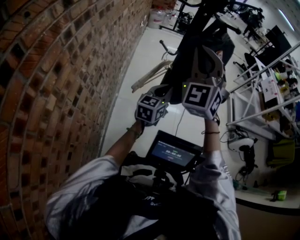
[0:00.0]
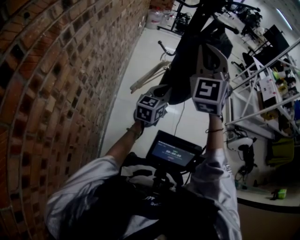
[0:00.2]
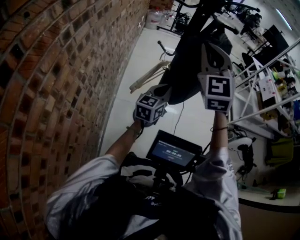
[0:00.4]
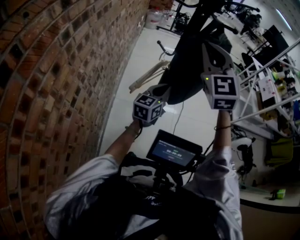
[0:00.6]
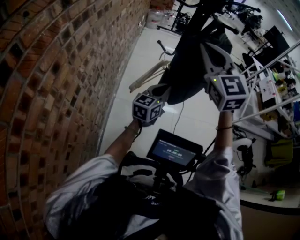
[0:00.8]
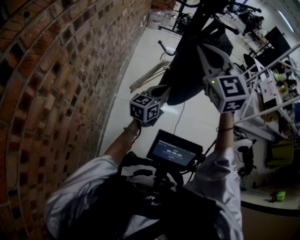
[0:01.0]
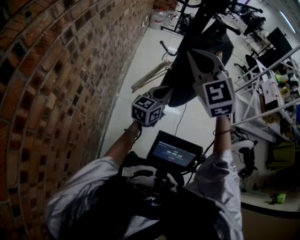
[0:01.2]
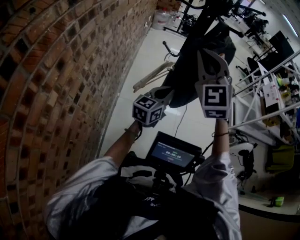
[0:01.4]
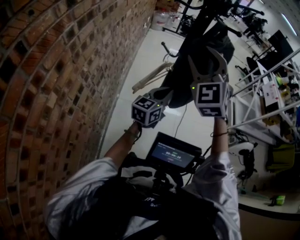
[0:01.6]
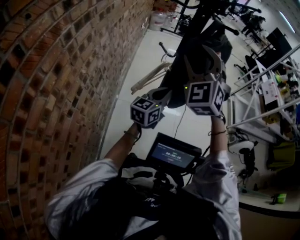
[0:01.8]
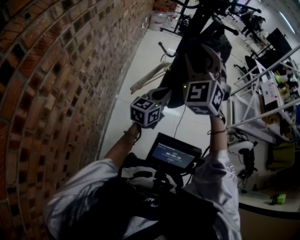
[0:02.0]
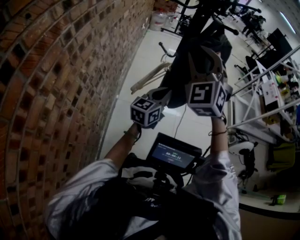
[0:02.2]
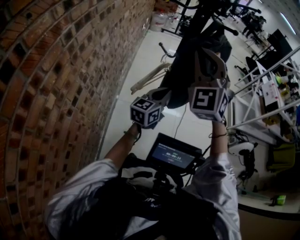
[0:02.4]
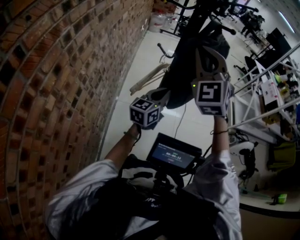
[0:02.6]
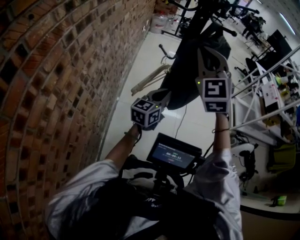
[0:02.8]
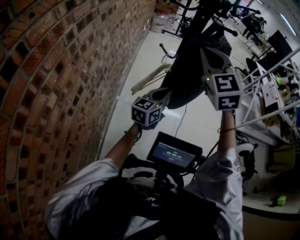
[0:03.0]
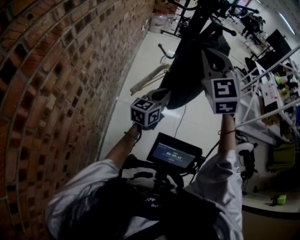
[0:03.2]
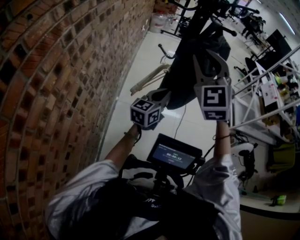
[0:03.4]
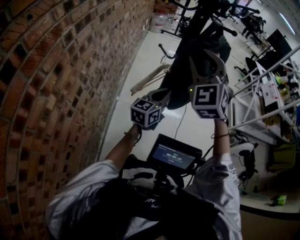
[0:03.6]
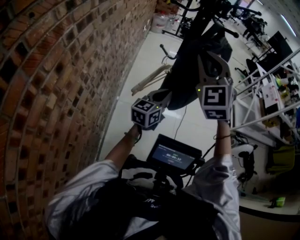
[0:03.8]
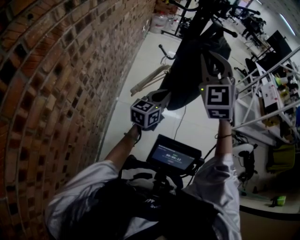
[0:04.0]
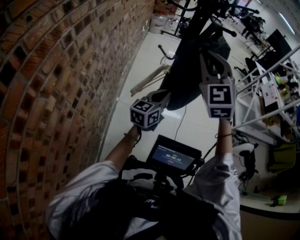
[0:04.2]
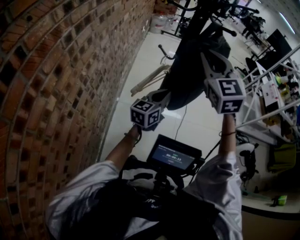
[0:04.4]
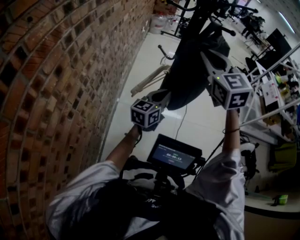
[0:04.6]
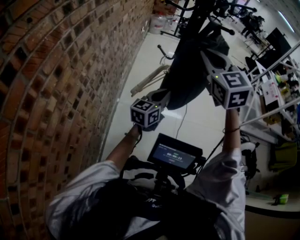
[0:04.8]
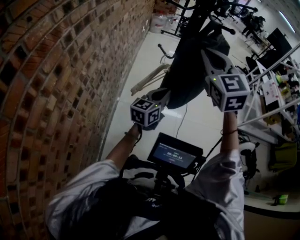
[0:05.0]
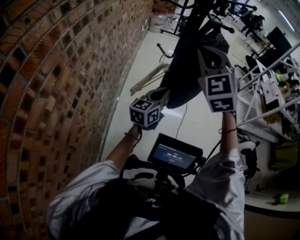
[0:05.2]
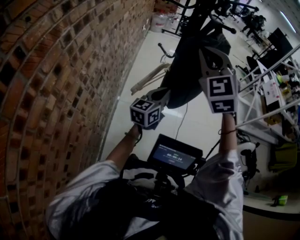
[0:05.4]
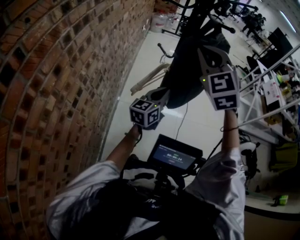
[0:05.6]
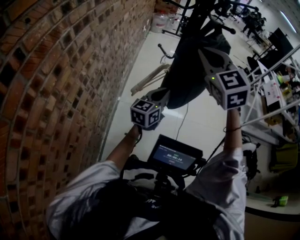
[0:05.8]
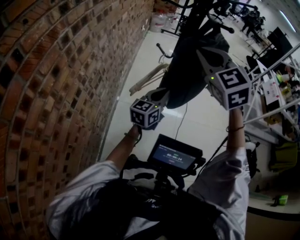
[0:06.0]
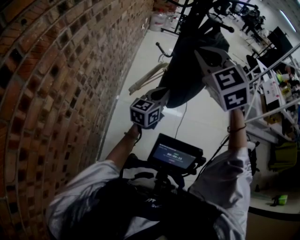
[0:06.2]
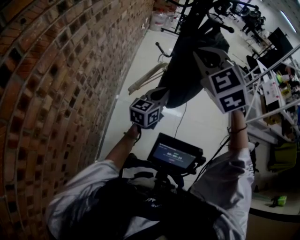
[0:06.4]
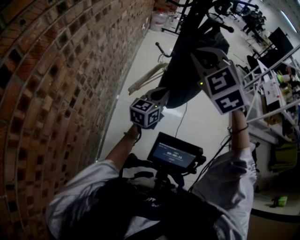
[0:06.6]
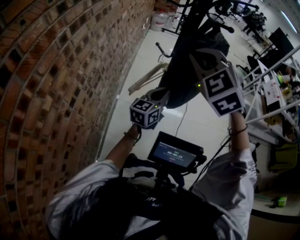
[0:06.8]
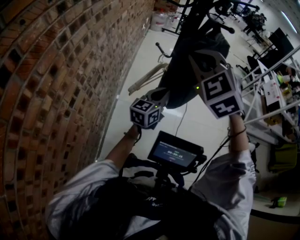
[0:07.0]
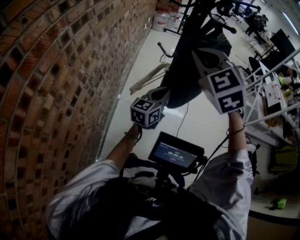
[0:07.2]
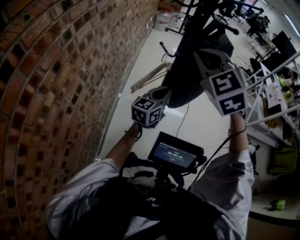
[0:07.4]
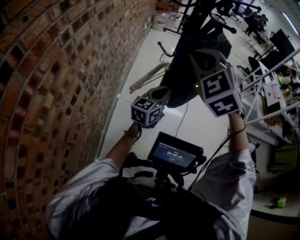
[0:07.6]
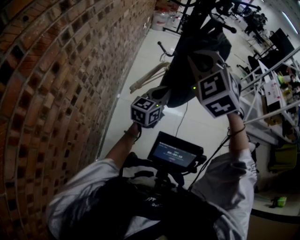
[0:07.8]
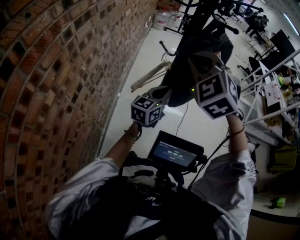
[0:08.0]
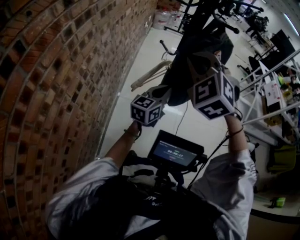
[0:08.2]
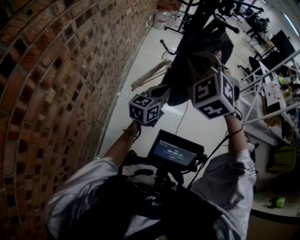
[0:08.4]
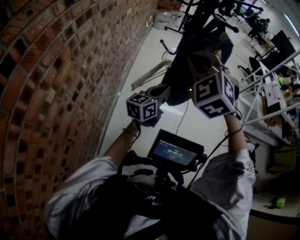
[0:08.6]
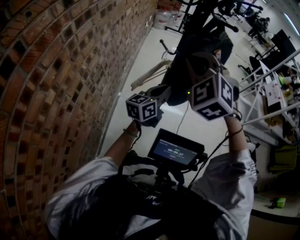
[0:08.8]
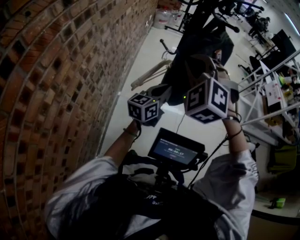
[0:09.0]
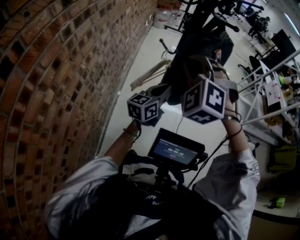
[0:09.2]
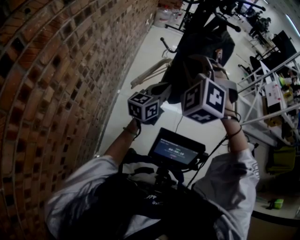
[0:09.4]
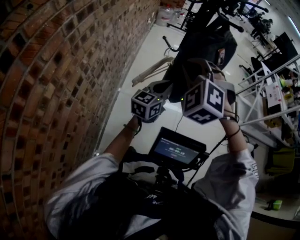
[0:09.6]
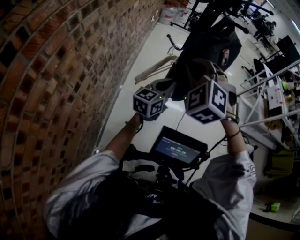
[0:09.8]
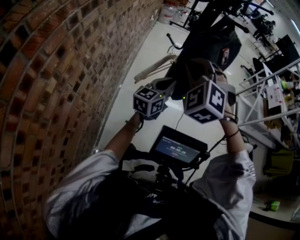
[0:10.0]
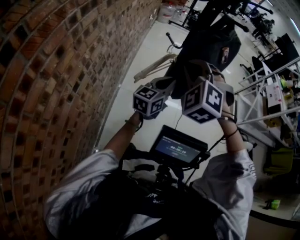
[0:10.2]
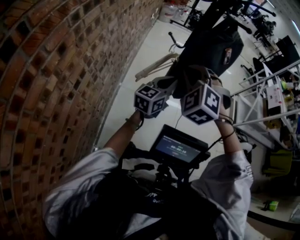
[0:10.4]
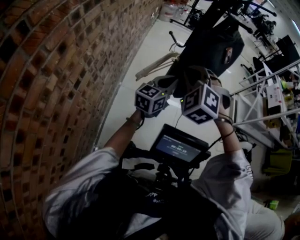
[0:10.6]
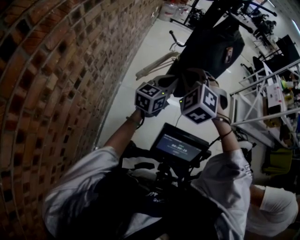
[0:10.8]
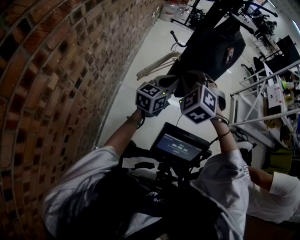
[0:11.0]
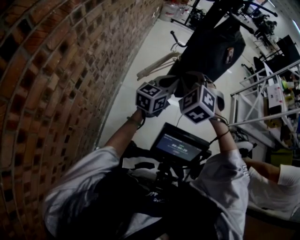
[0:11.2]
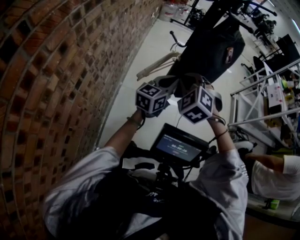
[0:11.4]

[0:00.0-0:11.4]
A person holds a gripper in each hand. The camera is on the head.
0:01.4 to 0:02.8: The right gripper opens, then closes once more.
0:02.8 to 0:04.2: The right gripper opens, then closes once more.
0:05.6 to 0:07.2: The grippers move only a little.
0:07.2 to 0:08.6: The grippers make only small movements.
0:08.6 to 0:10.0: The right gripper travels downward by roughly 5 cm.
0:10.0 to 0:11.4: The right gripper moves downward, some 10 cm.

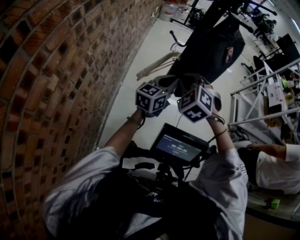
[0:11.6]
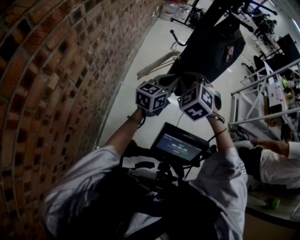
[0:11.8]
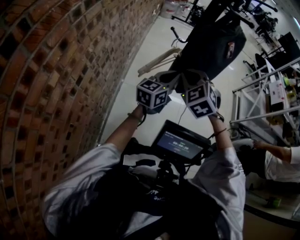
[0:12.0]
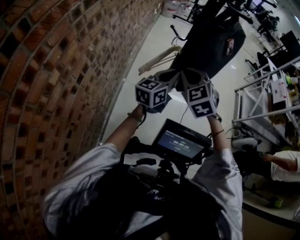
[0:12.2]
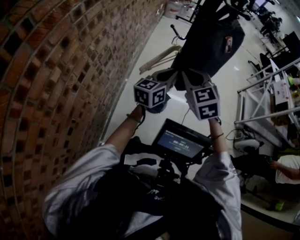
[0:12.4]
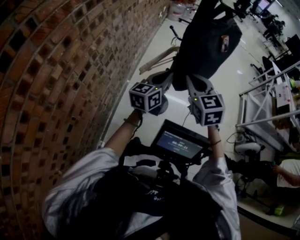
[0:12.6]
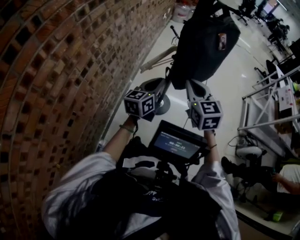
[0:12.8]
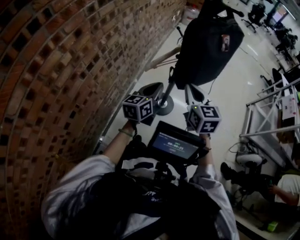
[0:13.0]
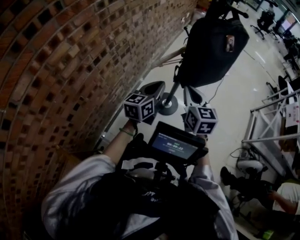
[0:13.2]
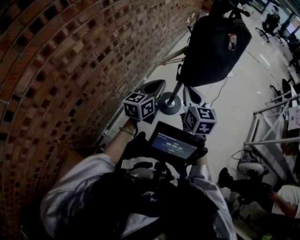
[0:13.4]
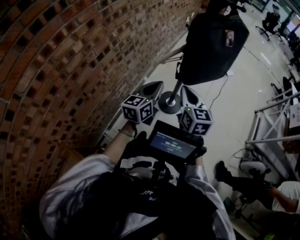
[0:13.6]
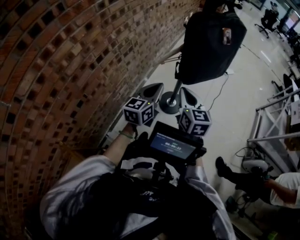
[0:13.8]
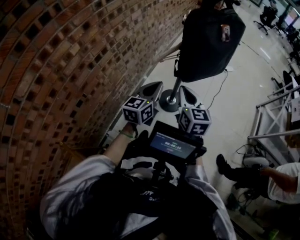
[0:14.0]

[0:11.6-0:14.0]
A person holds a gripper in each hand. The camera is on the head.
0:11.6 to 0:12.8: The left gripper moves backward, some 5 cm. The right gripper is displaced to the right by roughly 5 cm, and rotates around the line of its fingers by roughly 40 degrees, clockwise from behind.
0:12.8 to 0:14.0: The left gripper moves backward, roughly 10 cm. The right gripper moves downward and backward, about 10 cm.

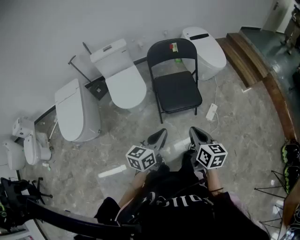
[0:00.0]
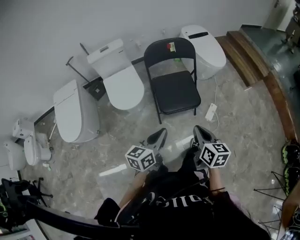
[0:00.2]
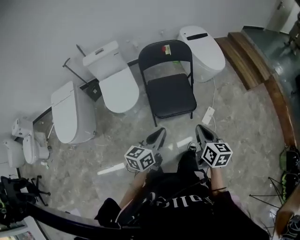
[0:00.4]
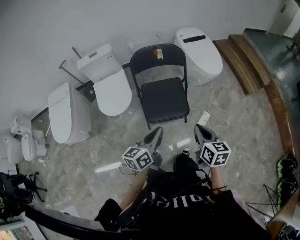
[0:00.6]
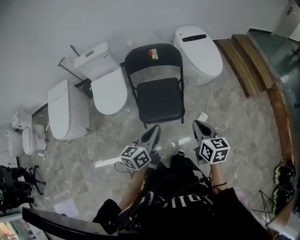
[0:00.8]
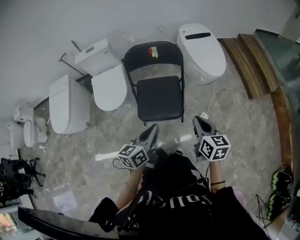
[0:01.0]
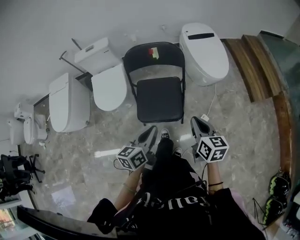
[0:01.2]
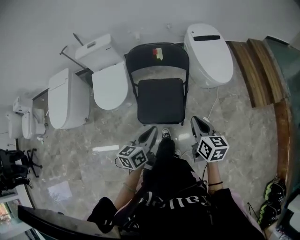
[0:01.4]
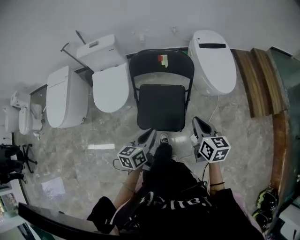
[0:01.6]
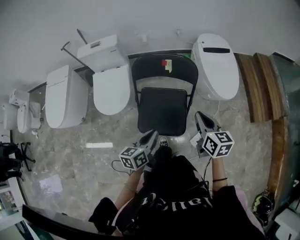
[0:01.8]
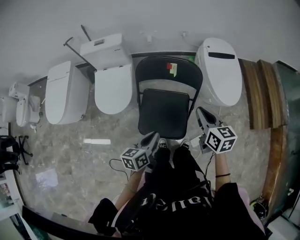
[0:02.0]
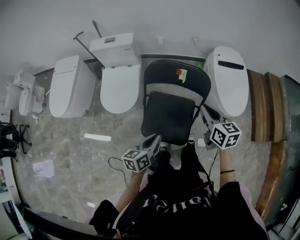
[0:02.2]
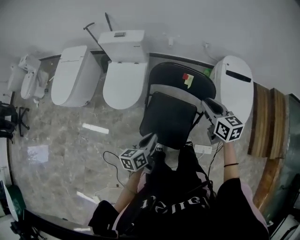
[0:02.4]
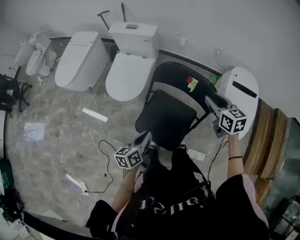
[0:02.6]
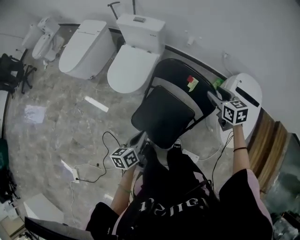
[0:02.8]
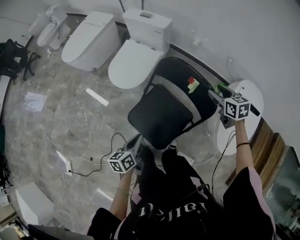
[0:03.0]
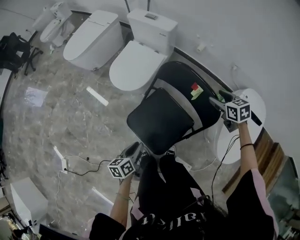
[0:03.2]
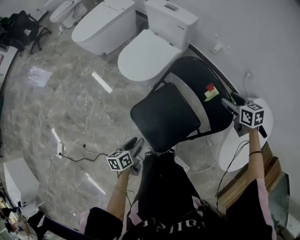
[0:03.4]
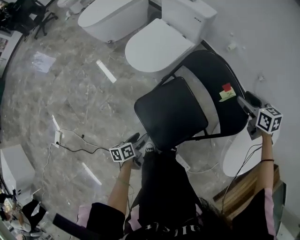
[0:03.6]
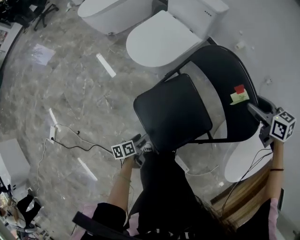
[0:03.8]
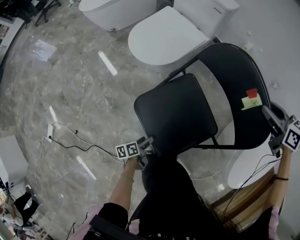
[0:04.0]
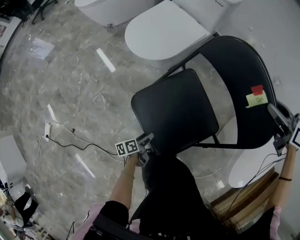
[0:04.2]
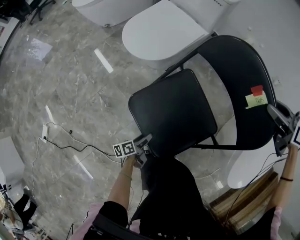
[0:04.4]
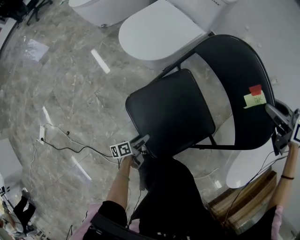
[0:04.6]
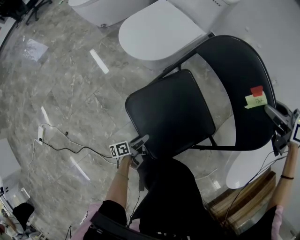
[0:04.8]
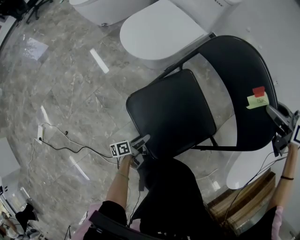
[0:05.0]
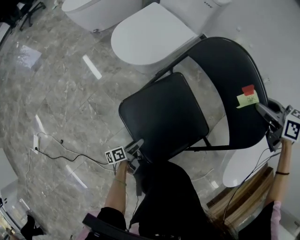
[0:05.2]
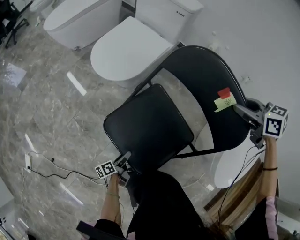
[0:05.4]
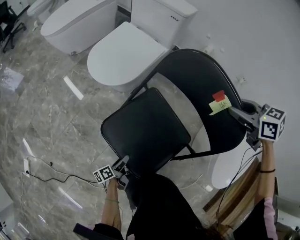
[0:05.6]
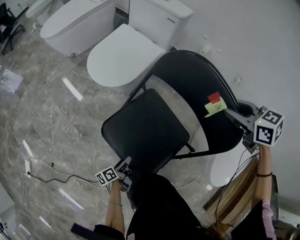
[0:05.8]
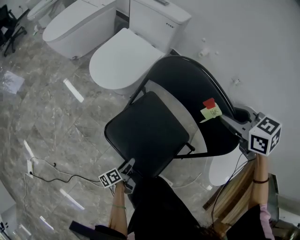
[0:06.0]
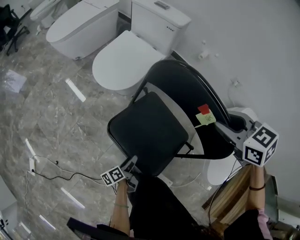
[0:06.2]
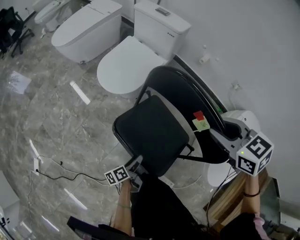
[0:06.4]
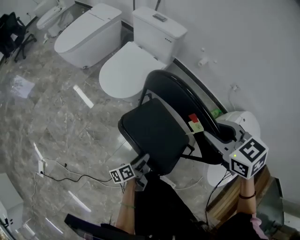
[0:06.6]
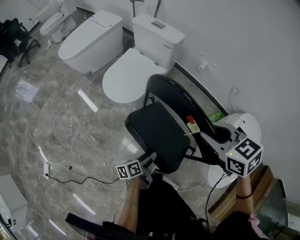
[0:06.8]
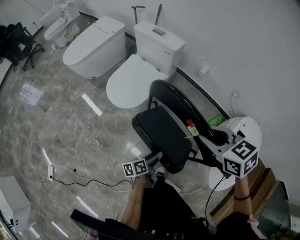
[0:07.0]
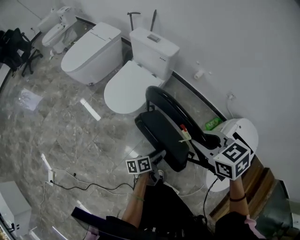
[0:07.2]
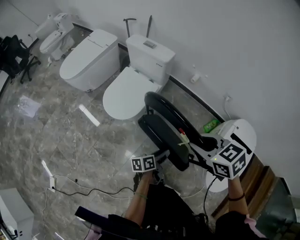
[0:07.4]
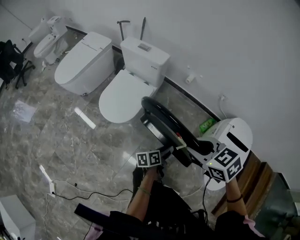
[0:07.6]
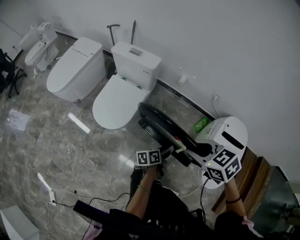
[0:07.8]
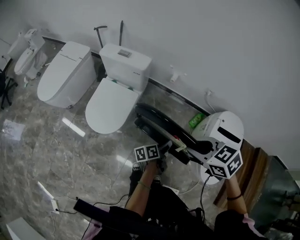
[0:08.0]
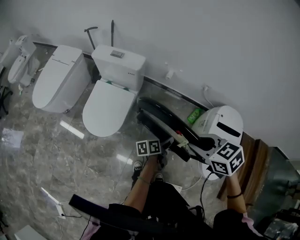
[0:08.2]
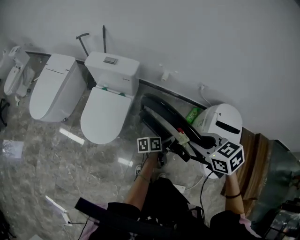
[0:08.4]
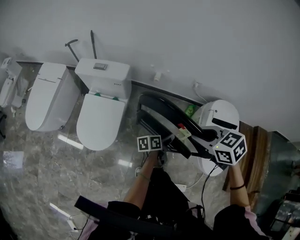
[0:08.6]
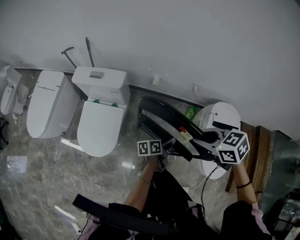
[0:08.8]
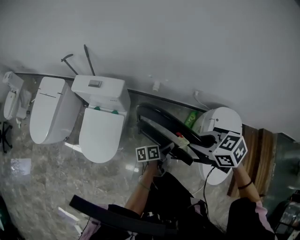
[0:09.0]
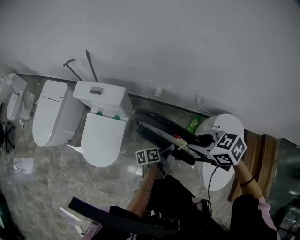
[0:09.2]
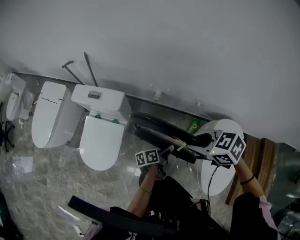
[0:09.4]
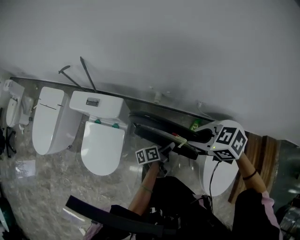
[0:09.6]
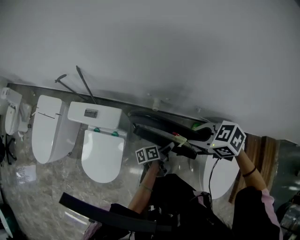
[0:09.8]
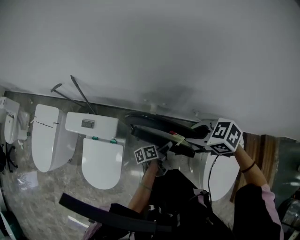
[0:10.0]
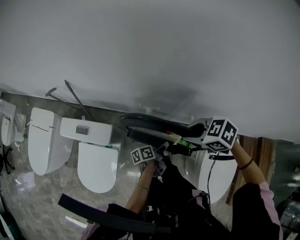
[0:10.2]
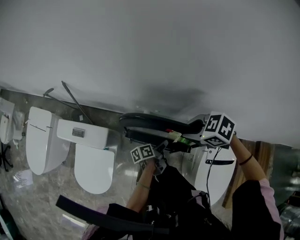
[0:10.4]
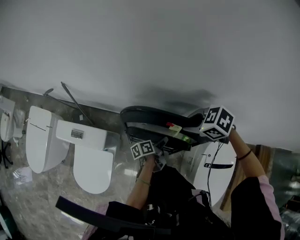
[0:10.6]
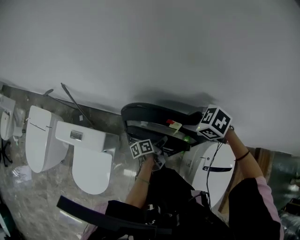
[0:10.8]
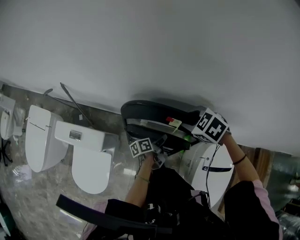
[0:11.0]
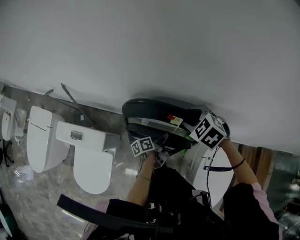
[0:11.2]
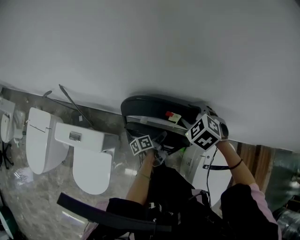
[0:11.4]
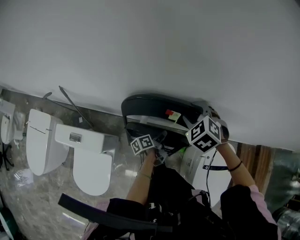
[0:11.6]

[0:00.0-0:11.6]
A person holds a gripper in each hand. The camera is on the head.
0:00.0 to 0:01.4: Both grippers travel together forward and to the right, approximately 35 cm. The left gripper rotates some 20 degrees.
0:01.4 to 0:02.8: The left gripper shifts by approximately 15 cm, and swivels roughly 40 degrees. The right gripper changes place by approximately 40 cm, swivels roughly 50 degrees, and opens its fingers.
0:02.8 to 0:04.4: The left gripper moves downward, some 50 cm, rolls counterclockwise, seen from behind, by some 40 degrees, and opens its fingers, while the right gripper moves downward and forward, some 15 cm, and changes its angle by approximately 30 degrees.
0:04.4 to 0:05.8: The right gripper changes place by about 5 cm. The left gripper changes place by about 5 cm.
0:05.8 to 0:07.2: The right gripper shifts roughly 15 cm upward and to the left. Meanwhile the left gripper travels upward, to the right and forward by about 35 cm, turns by roughly 20 degrees, and closes.
0:07.2 to 0:08.8: The left gripper shifts by some 25 cm, and changes its angle by roughly 30 degrees. The right gripper changes place by approximately 15 cm, and turns by about 20 degrees.
0:08.8 to 0:10.2: The right gripper changes place by approximately 30 cm, while the left gripper shifts by approximately 30 cm.
0:10.2 to 0:11.6: The left gripper changes place by approximately 15 cm; the right gripper shifts by some 20 cm, turns by some 40 degrees, and opens up.
